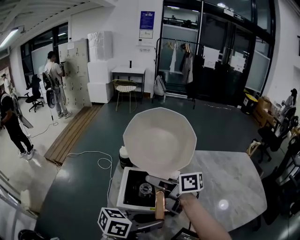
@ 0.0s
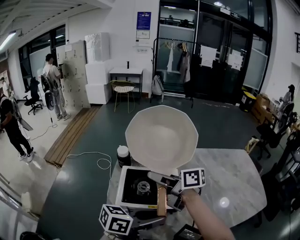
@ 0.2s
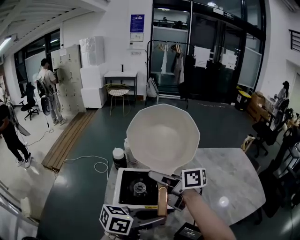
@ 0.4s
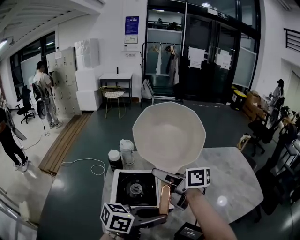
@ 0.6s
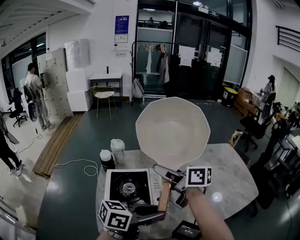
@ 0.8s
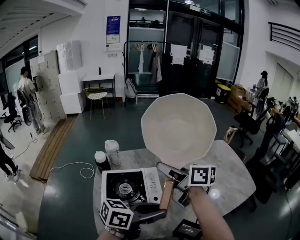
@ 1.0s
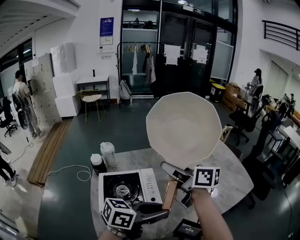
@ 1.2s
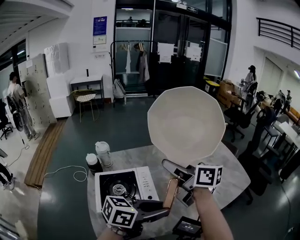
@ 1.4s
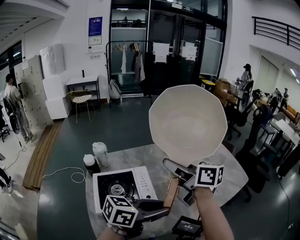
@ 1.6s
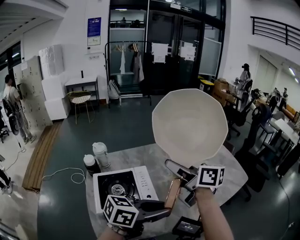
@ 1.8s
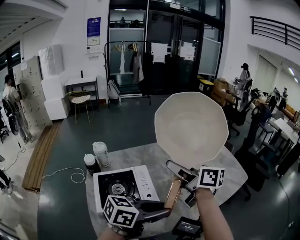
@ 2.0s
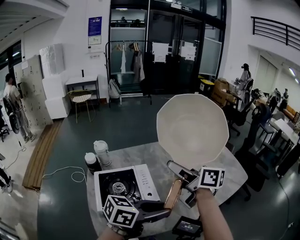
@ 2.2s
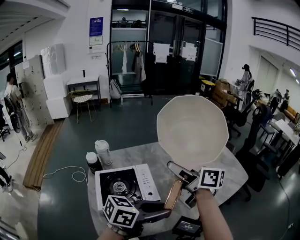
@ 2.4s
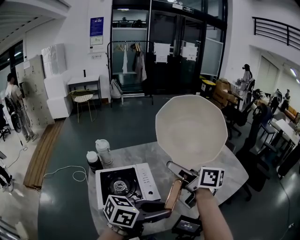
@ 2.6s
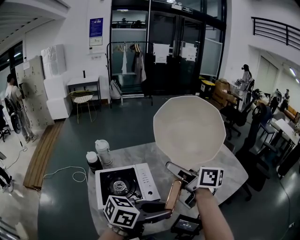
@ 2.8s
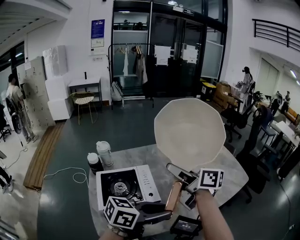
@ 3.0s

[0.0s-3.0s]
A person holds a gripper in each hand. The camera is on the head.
0.0s to 1.6s: The right gripper moves some 20 cm, and swivels some 40 degrees; the left gripper ends up approximately 10 cm from where it was, and rotates about 20 degrees.
1.6s to 3.0s: There are only small adjustments of the grippers.

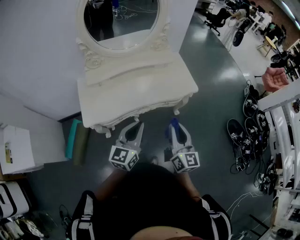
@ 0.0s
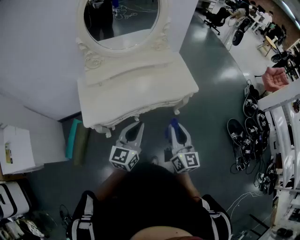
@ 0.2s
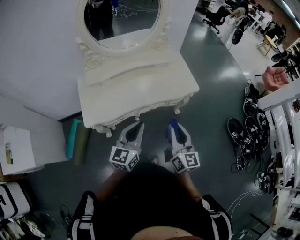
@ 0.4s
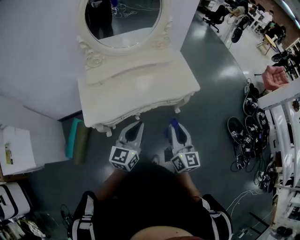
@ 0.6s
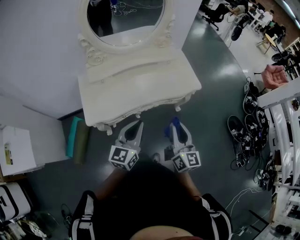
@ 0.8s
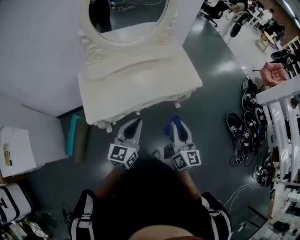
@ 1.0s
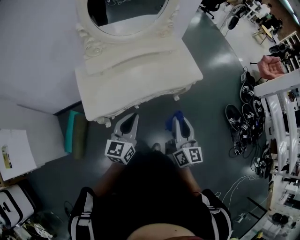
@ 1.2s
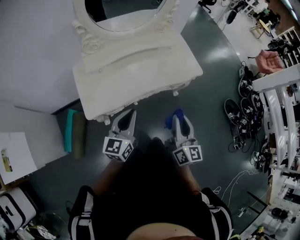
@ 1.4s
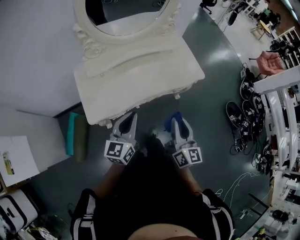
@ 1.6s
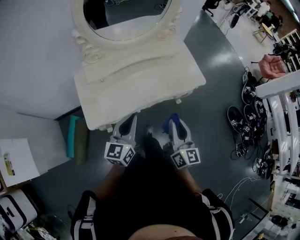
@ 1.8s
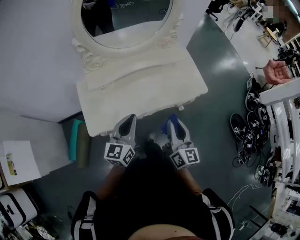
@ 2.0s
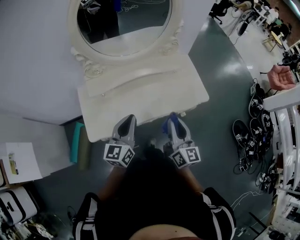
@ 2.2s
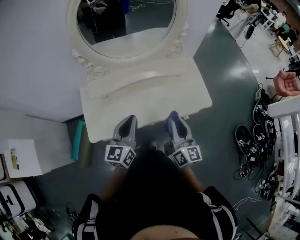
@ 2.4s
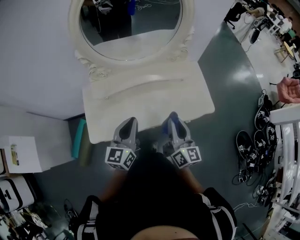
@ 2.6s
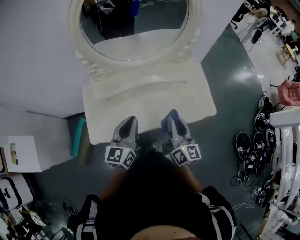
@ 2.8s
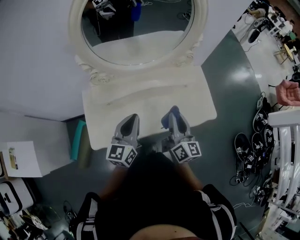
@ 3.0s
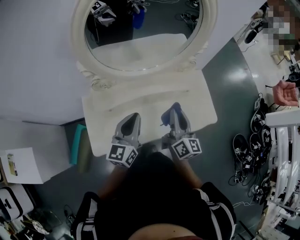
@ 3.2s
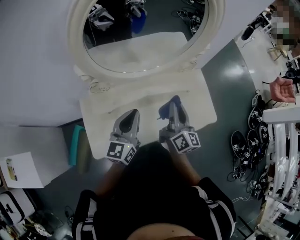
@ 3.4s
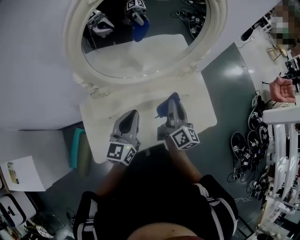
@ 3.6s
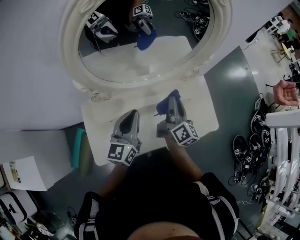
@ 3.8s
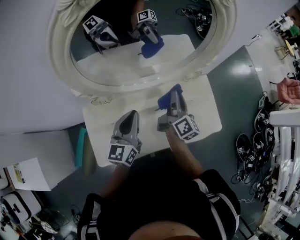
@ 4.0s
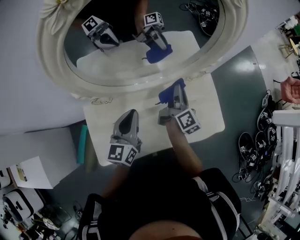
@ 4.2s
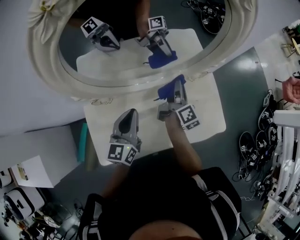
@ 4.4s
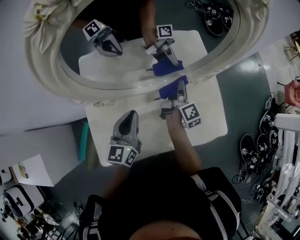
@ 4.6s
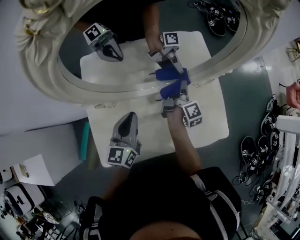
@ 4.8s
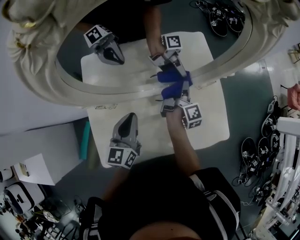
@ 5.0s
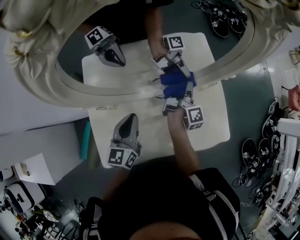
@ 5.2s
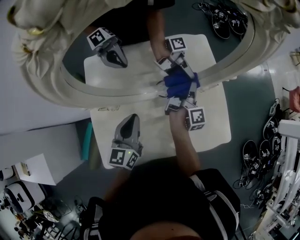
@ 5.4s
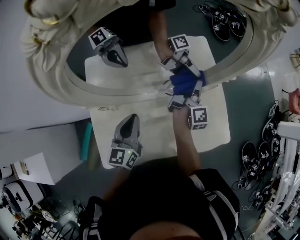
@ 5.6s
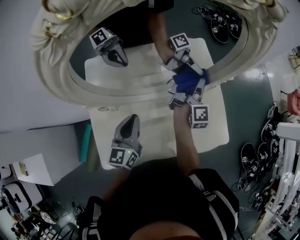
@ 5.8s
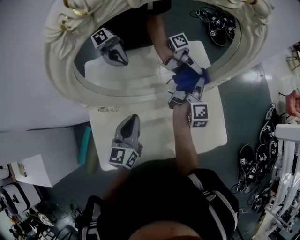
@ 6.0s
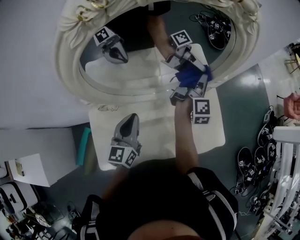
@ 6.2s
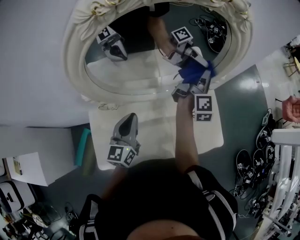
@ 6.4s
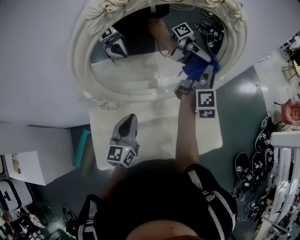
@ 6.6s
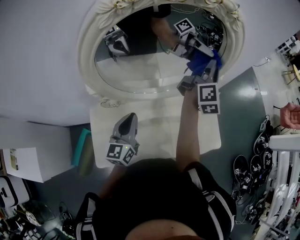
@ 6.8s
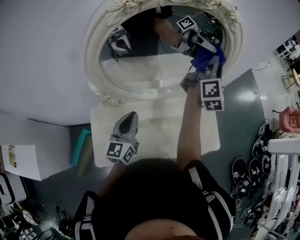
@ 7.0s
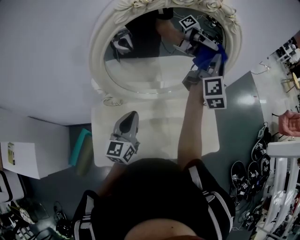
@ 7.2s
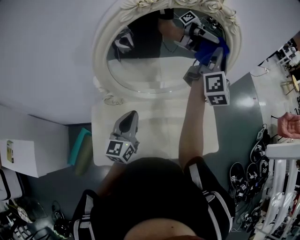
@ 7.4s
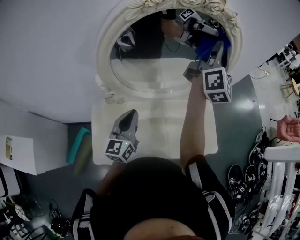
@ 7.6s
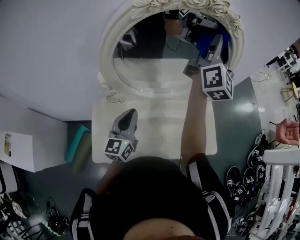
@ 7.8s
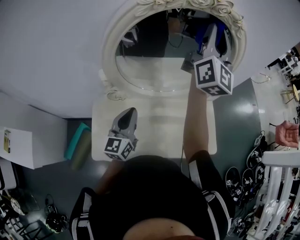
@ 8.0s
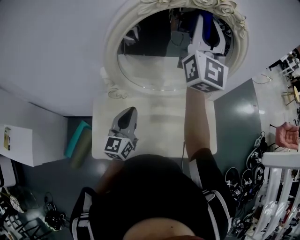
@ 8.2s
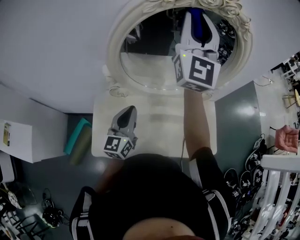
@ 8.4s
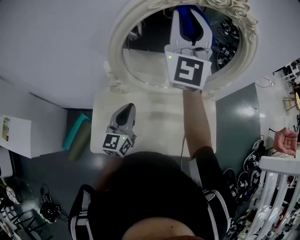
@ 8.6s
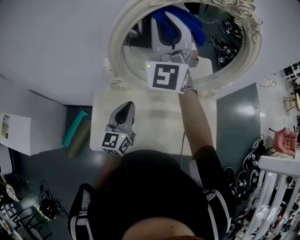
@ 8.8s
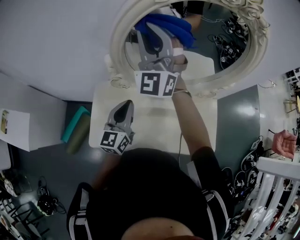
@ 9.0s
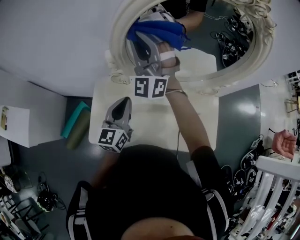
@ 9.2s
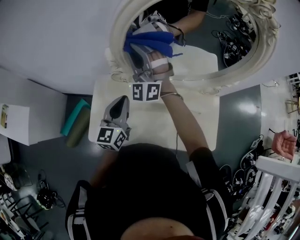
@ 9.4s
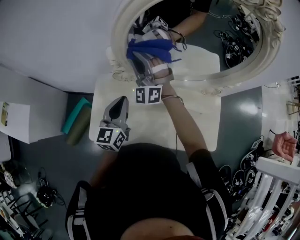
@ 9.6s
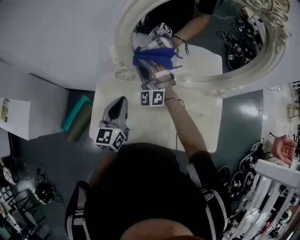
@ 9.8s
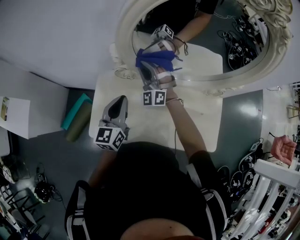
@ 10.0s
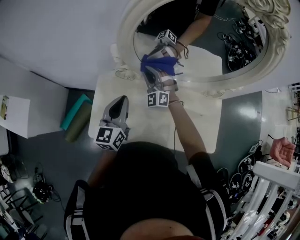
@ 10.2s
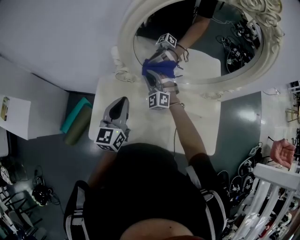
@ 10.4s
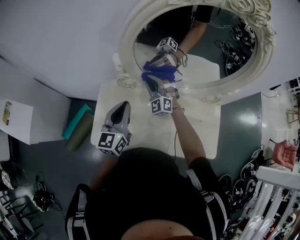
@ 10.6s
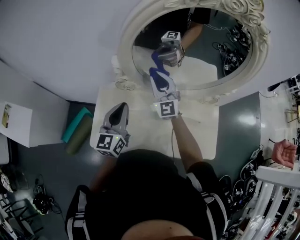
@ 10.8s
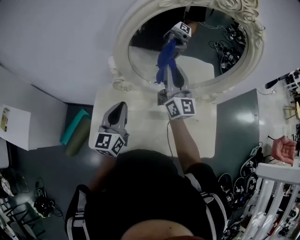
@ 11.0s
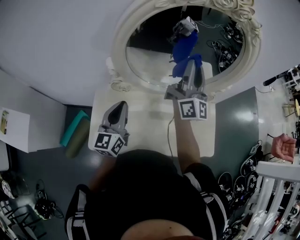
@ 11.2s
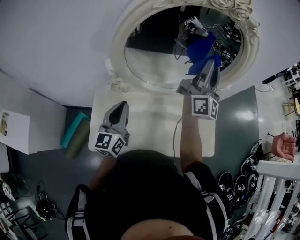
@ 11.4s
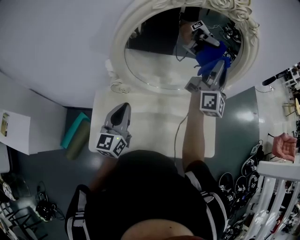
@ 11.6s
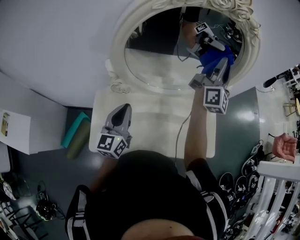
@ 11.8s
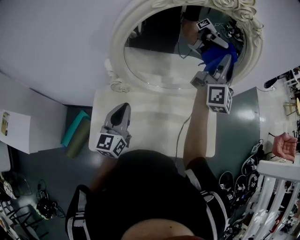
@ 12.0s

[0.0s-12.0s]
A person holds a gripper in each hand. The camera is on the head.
0.0s to 1.6s: Both grippers move to the left, about 10 cm.
1.6s to 3.0s: Both grippers move forward, about 25 cm.
3.0s to 4.4s: The right gripper travels forward by approximately 30 cm, and turns by about 30 degrees; the left gripper travels forward by about 20 cm.
4.4s to 6.0s: The right gripper heads forward and to the right, covering roughly 10 cm, and swivels approximately 20 degrees.
6.0s to 7.6s: The left gripper travels backward by about 5 cm; the right gripper is displaced upward by some 30 cm, and rotates about 40 degrees.
7.6s to 9.0s: The right gripper moves about 10 cm upward and comes back, and rolls counterclockwise, seen from behind, by roughly 60 degrees.
9.0s to 10.4s: The right gripper moves downward, approximately 35 cm, and angles its fingers downward, by about 30 degrees.
10.4s to 12.0s: The right gripper travels upward by approximately 35 cm, and tilts its fingers approximately 50 degrees upward.

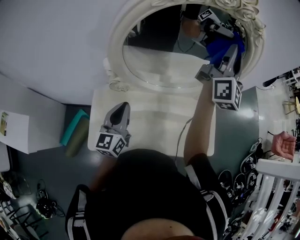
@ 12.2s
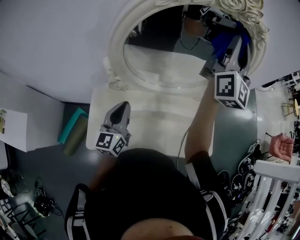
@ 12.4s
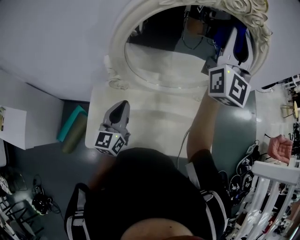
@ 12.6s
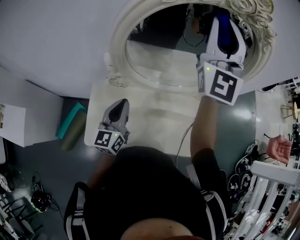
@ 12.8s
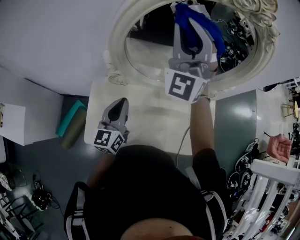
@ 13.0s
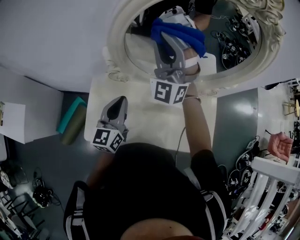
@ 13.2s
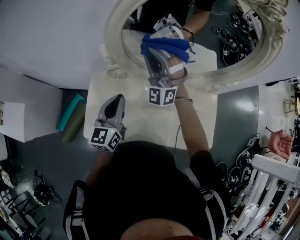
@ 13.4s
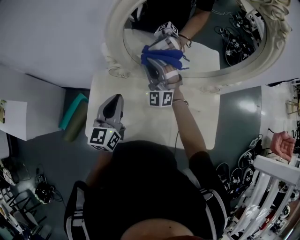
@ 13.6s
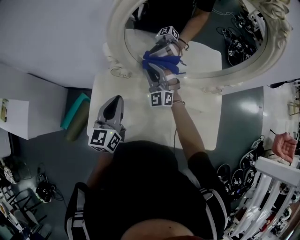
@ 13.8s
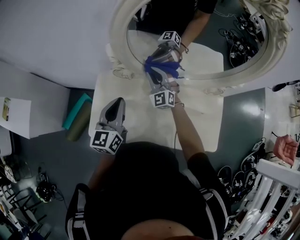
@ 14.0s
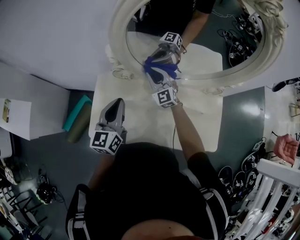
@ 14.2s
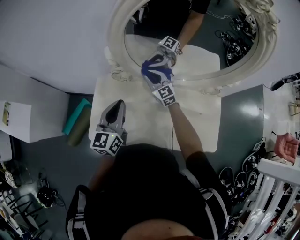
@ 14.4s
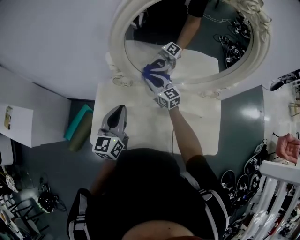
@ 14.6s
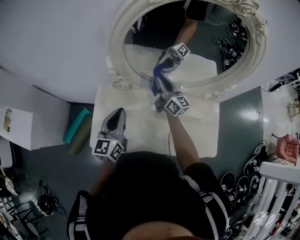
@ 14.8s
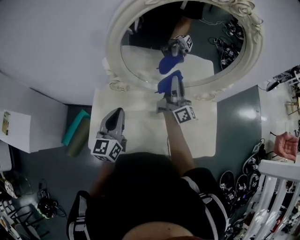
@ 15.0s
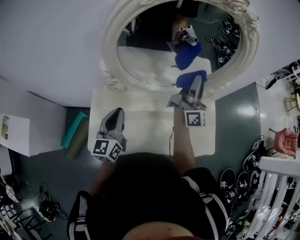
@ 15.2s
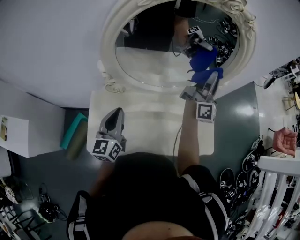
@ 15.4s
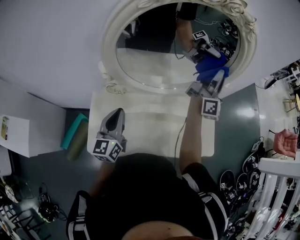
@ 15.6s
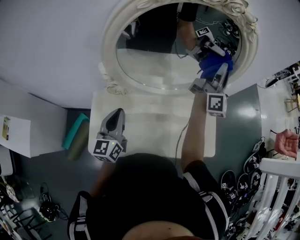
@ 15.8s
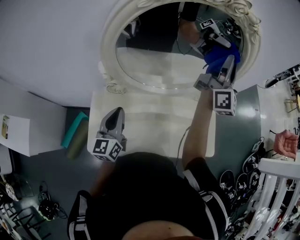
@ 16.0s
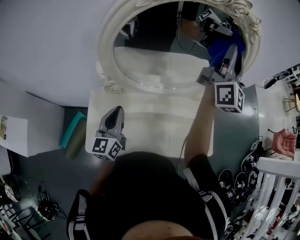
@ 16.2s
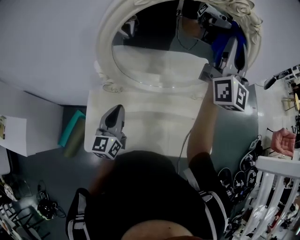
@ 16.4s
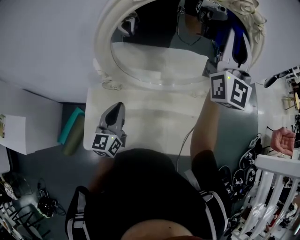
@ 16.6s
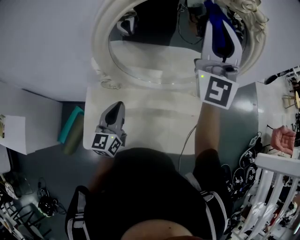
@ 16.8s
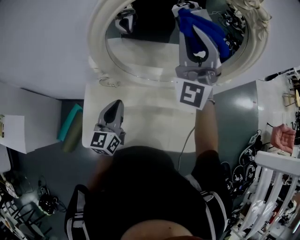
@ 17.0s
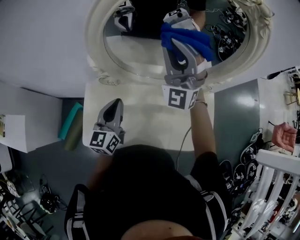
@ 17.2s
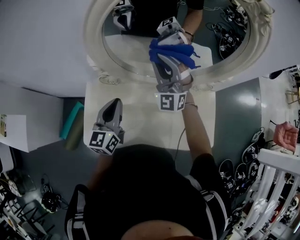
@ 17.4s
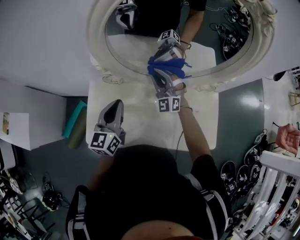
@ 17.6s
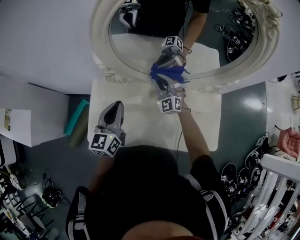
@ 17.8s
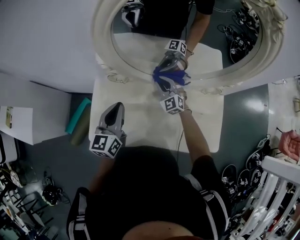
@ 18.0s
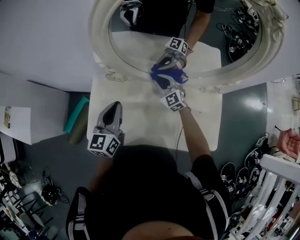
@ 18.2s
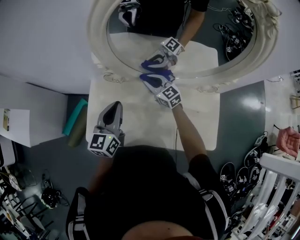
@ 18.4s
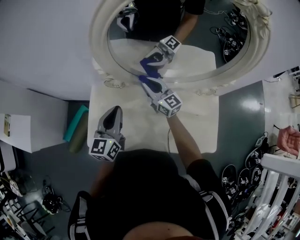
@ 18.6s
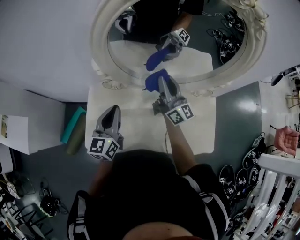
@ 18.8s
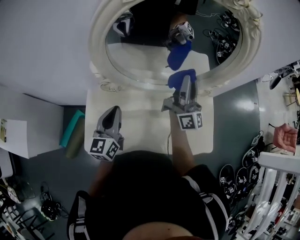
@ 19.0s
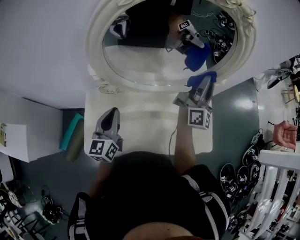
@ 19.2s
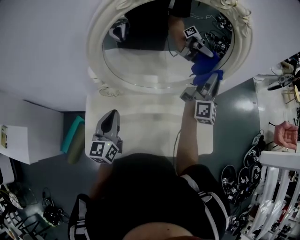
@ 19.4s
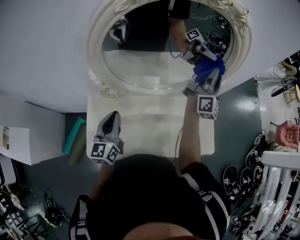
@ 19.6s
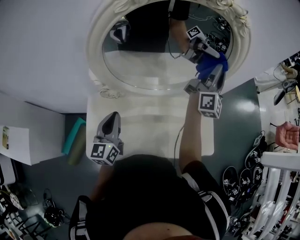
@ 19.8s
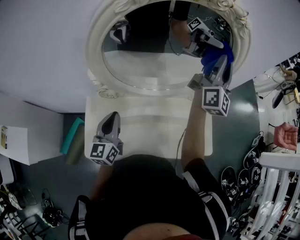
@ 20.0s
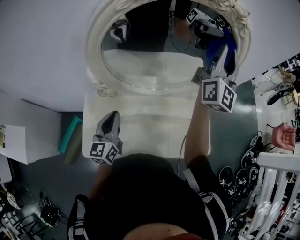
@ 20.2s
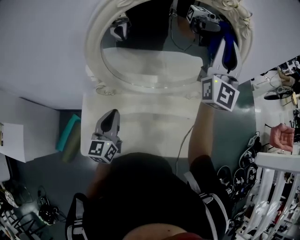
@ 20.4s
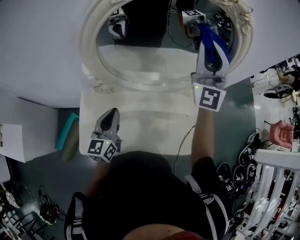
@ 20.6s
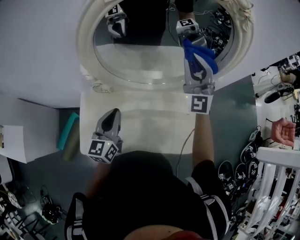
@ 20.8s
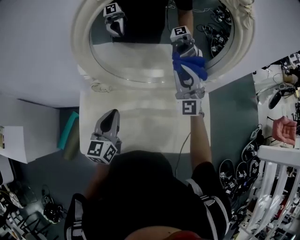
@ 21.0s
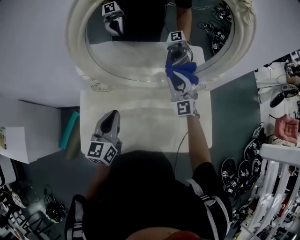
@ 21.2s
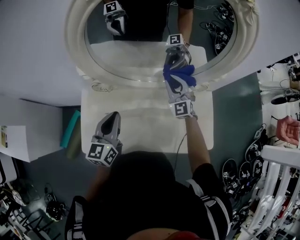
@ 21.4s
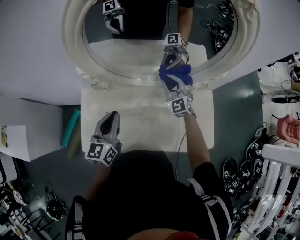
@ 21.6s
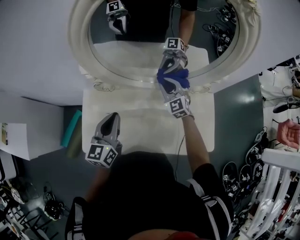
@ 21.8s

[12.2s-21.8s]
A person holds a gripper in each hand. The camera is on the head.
12.2s to 13.8s: The right gripper goes roughly 35 cm downward, and angles its fingers downward, by roughly 40 degrees.
13.8s to 15.4s: The right gripper moves approximately 40 cm, and points its fingers some 40 degrees further upward.
15.4s to 17.0s: The right gripper shifts some 20 cm to the left and upward, and rotates around the line of its fingers by some 70 degrees, counterclockwise from behind.
17.0s to 18.6s: The right gripper heads downward, covering some 35 cm, and rotates around the line of its fingers by some 70 degrees, clockwise from behind.
18.6s to 20.2s: The right gripper goes about 35 cm upward, and points its fingers about 30 degrees further upward.
20.2s to 21.8s: The right gripper travels downward by about 40 cm, and tips its fingers downward by about 50 degrees.
